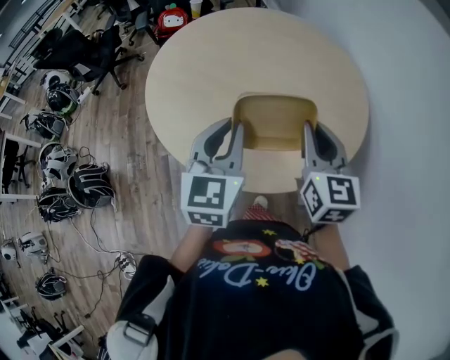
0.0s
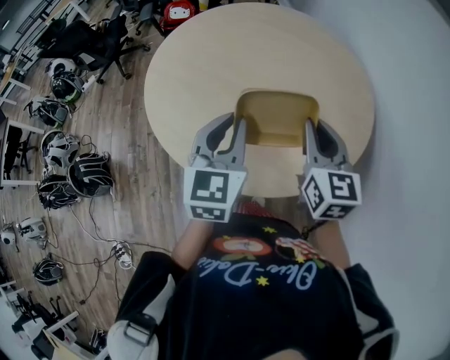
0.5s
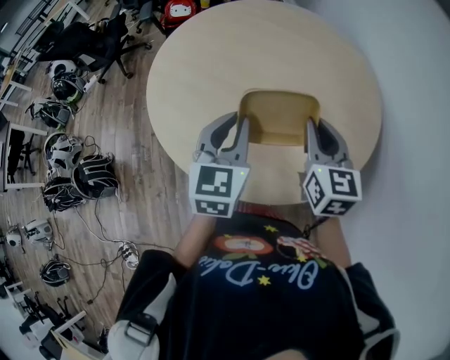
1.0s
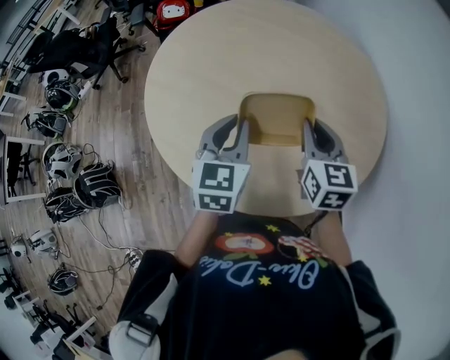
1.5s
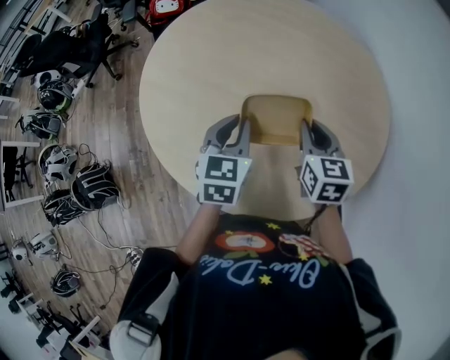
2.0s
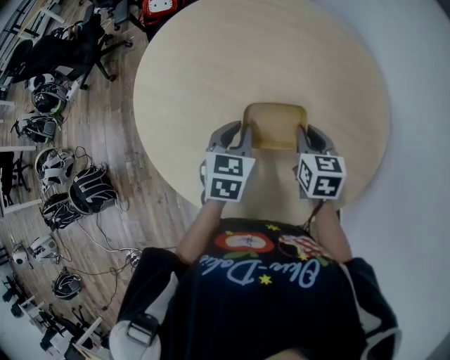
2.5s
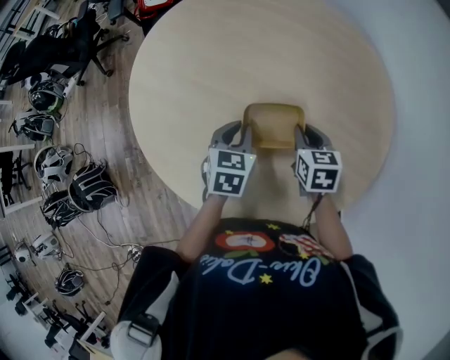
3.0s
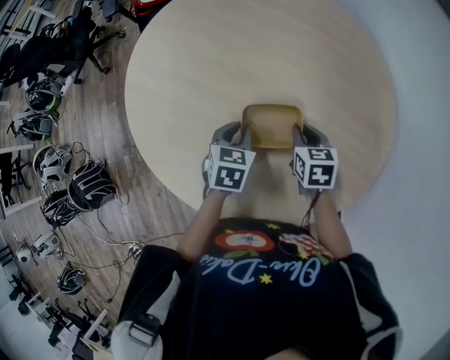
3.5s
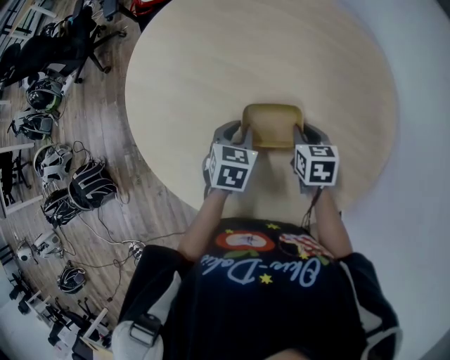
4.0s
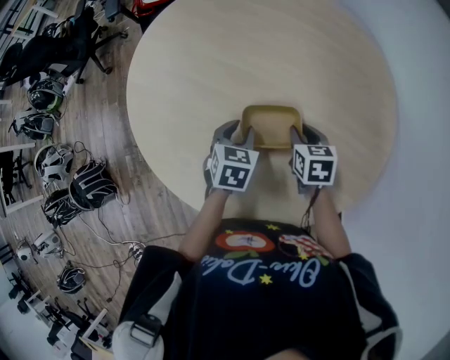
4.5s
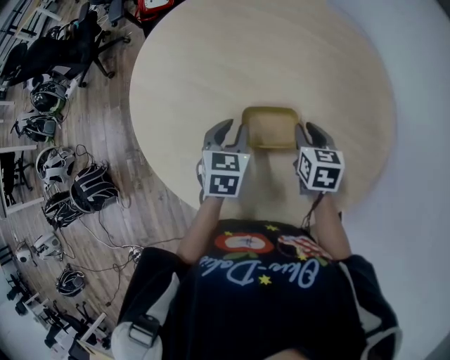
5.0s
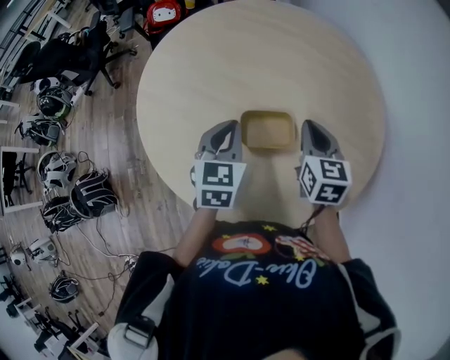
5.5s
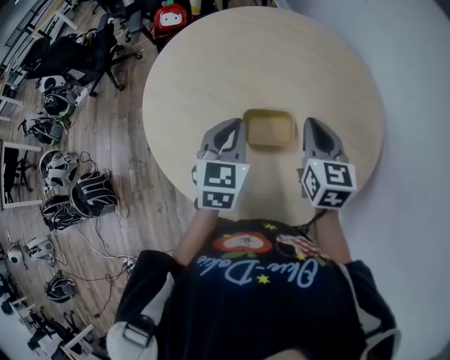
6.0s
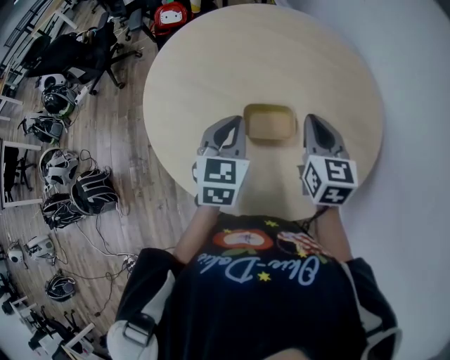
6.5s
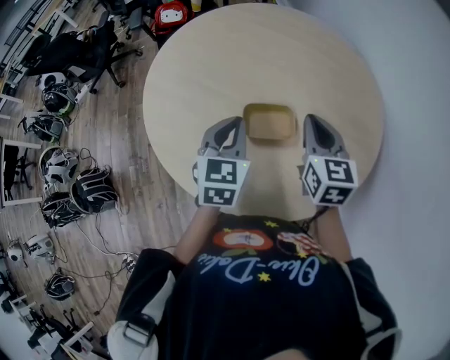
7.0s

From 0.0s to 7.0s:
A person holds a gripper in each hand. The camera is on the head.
From 0.0s to 2.0s: The grippers both shift forward and downward by about 20 cm.
From 2.0s to 3.5s: The grippers both shift downward by roughly 15 cm.
From 3.5s to 5.0s: The left gripper is displaced upward by roughly 5 cm.
From 5.0s to 7.0s: The right gripper moves upward, roughly 15 cm, changes its angle by roughly 20 degrees, and closes. The left gripper moves upward and backward, roughly 15 cm, and closes.

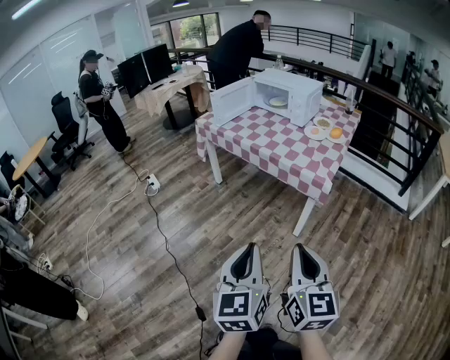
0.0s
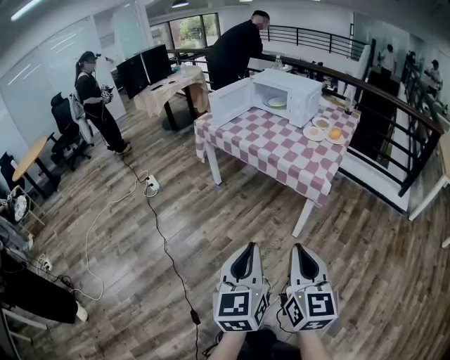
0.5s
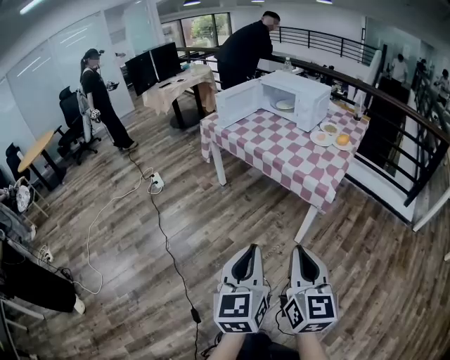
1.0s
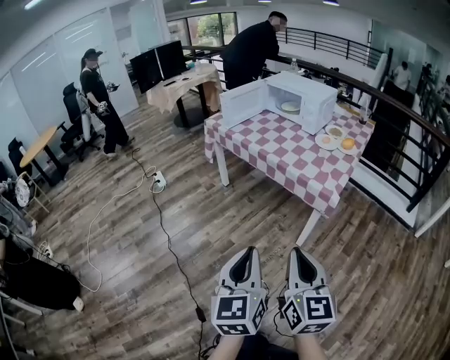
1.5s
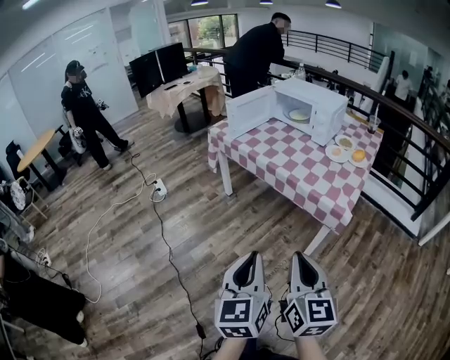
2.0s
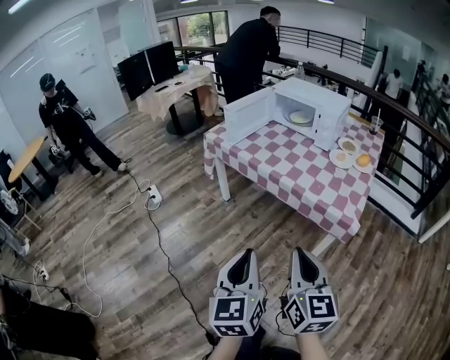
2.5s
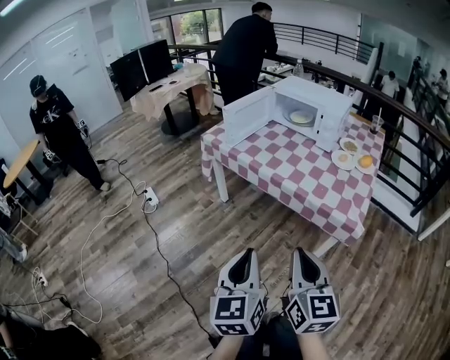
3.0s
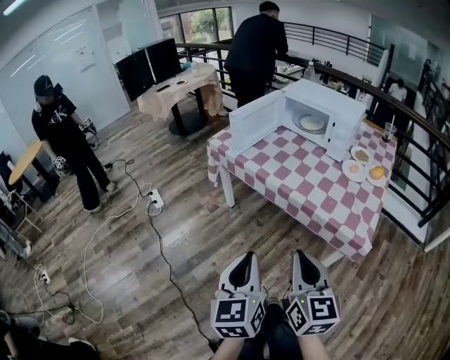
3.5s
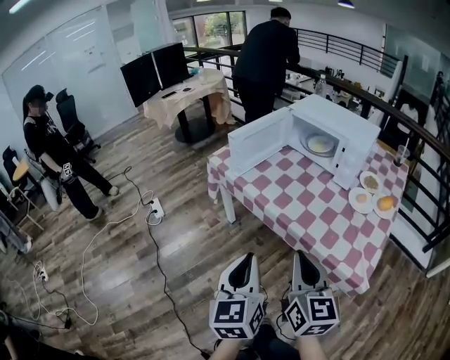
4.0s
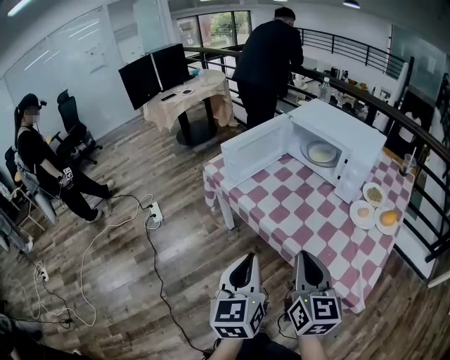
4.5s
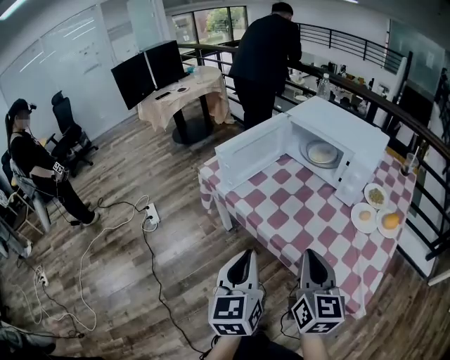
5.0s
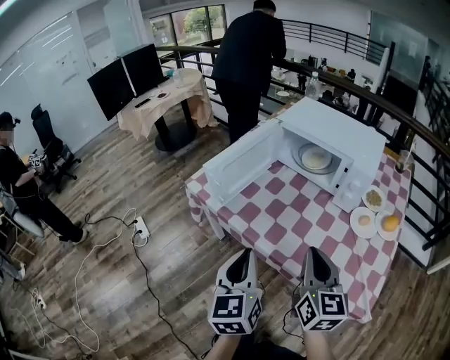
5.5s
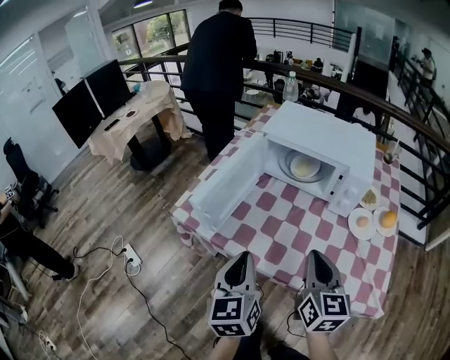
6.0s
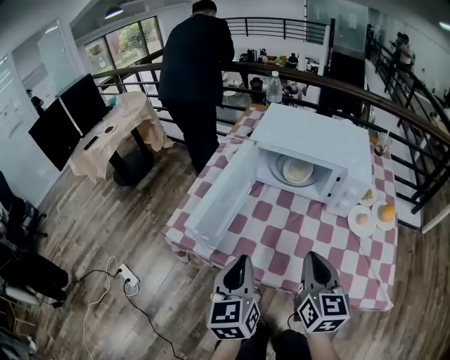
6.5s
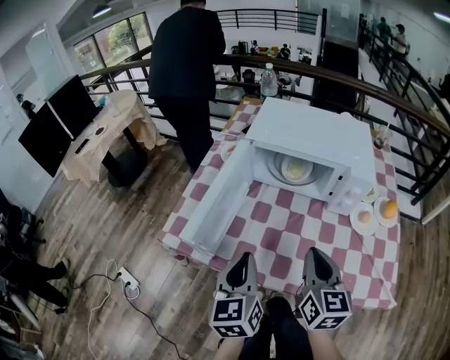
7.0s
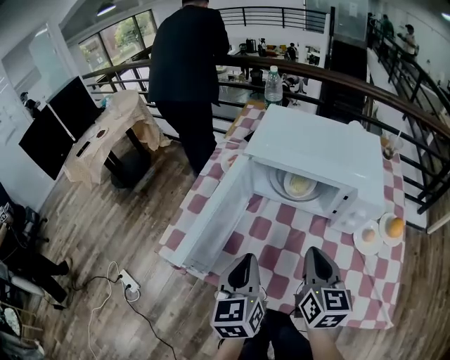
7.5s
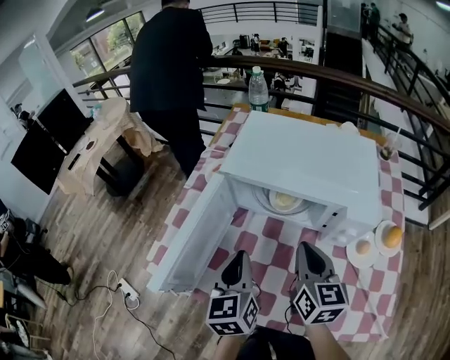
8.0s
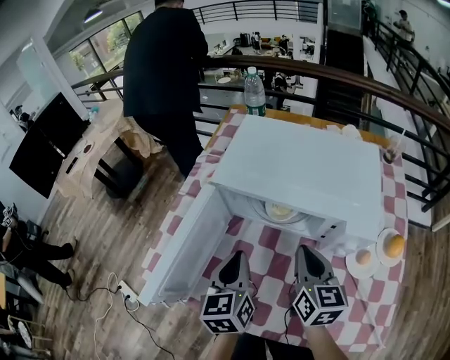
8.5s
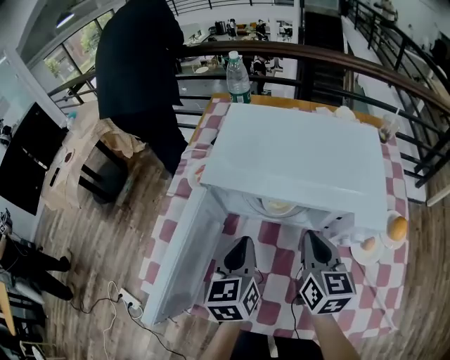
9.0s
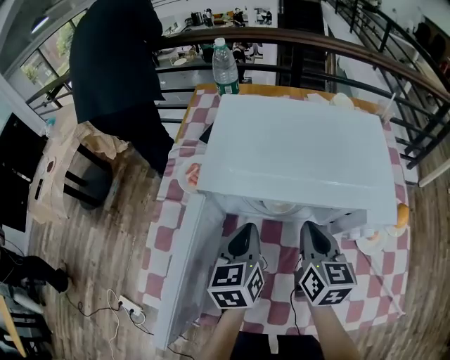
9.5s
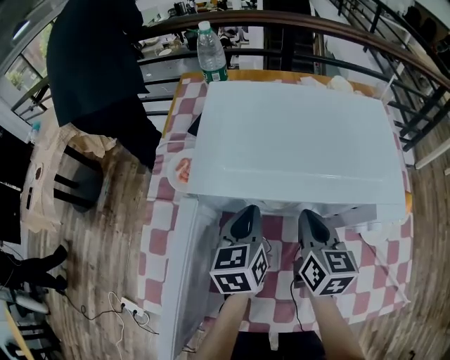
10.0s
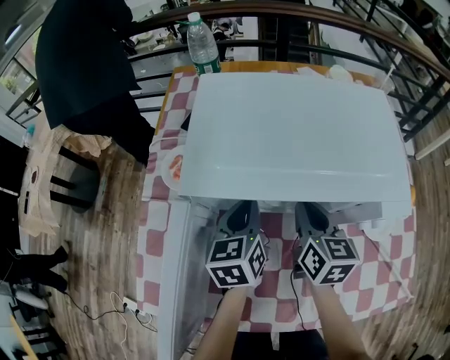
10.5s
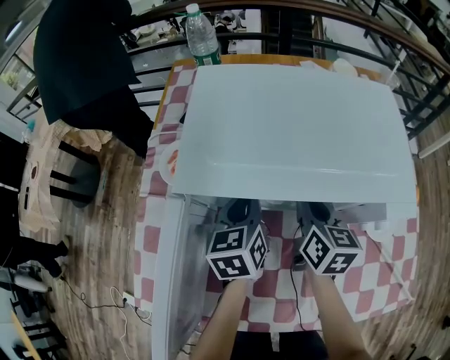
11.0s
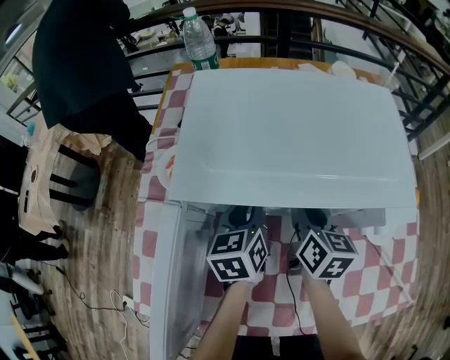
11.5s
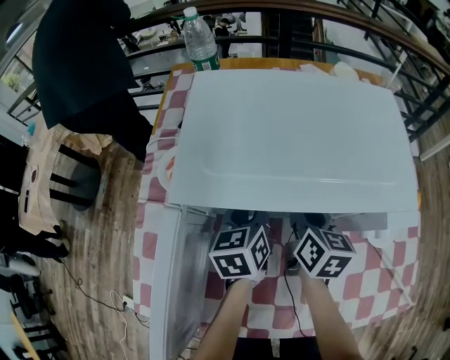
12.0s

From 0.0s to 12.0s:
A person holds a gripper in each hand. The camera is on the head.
From 0.0s to 2.0s: Both grippers travel together forward, roughly 10 cm.
From 2.0s to 4.0s: Both grippers move forward, roughly 30 cm.
From 4.0s to 6.0s: Both grippers travel together forward, some 25 cm. The right gripper turns by roughly 20 degrees.
From 6.0s to 8.0s: Both grippers travel together forward, roughly 20 cm.
From 8.0s to 10.0s: Both grippers travel together forward and downward, about 15 cm. The left gripper rotates approximately 20 degrees.
From 10.0s to 12.0s: The right gripper ends up about 5 cm from where it was, and opens; the left gripper shifts by approximately 5 cm, and opens up.

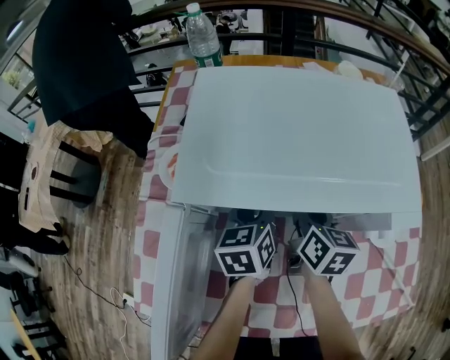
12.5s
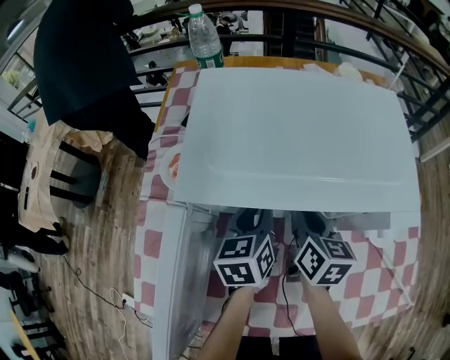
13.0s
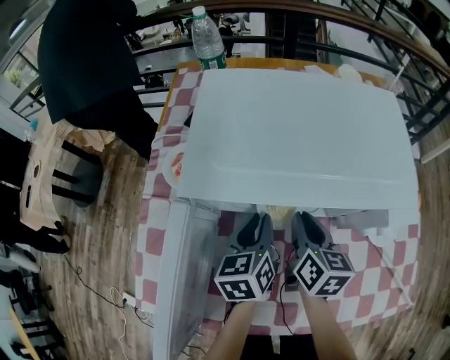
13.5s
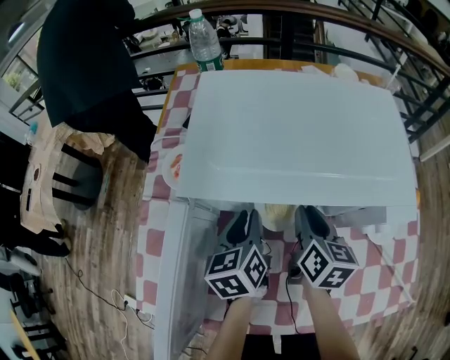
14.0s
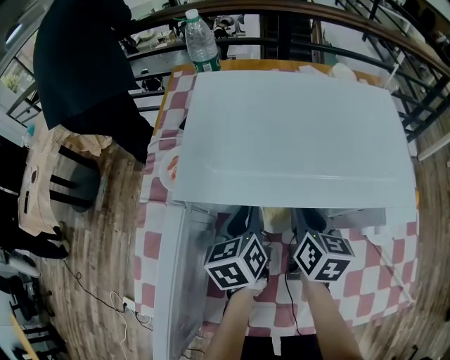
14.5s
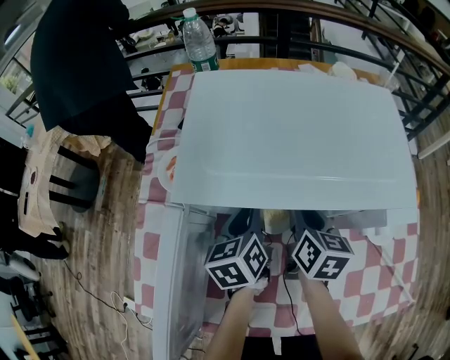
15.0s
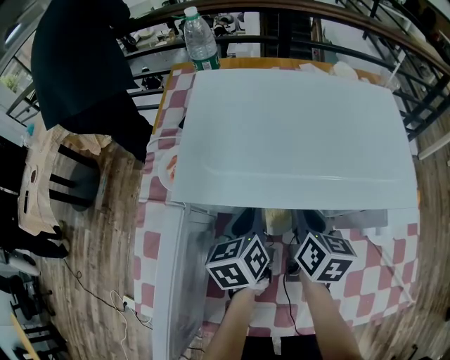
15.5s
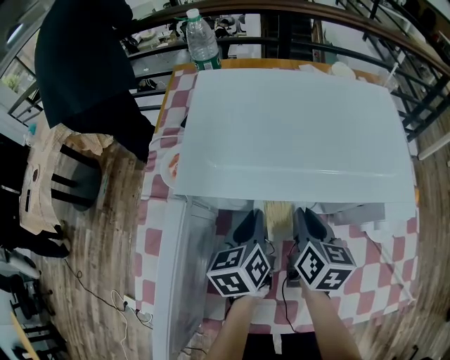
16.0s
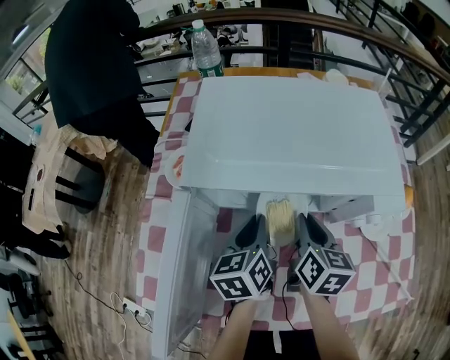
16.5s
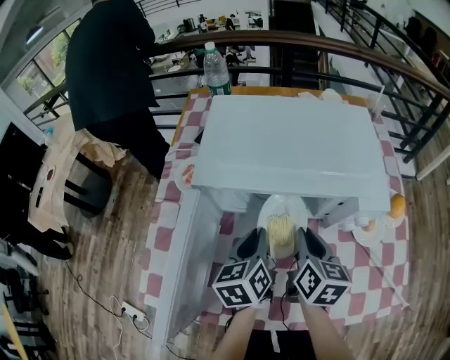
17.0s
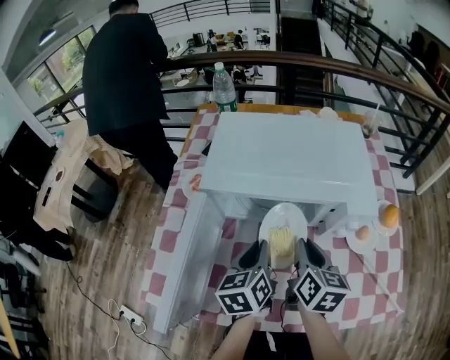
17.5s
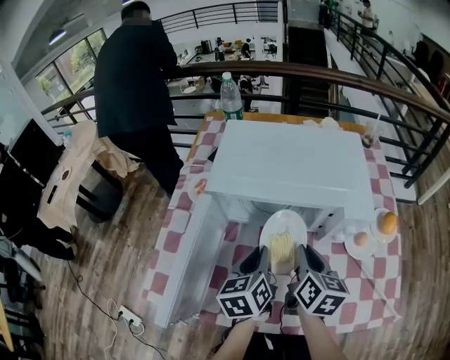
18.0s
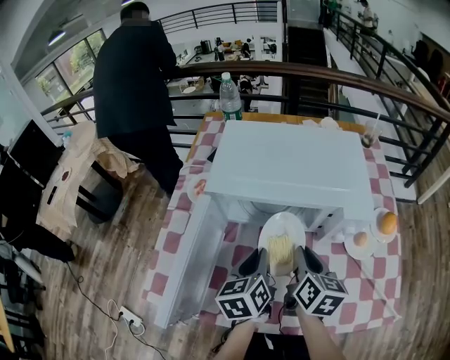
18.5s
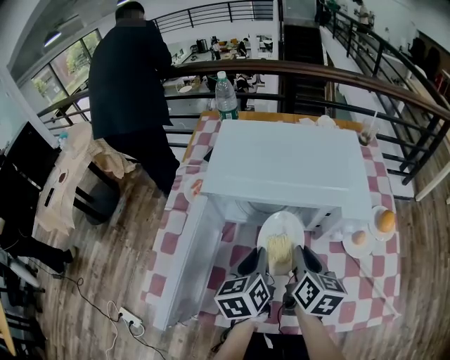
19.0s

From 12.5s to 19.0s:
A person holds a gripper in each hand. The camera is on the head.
From 14.5s to 17.0s: The right gripper goes some 10 cm backward and upward, while the left gripper travels backward by roughly 10 cm.
From 17.0s to 19.0s: The left gripper changes place by roughly 5 cm.

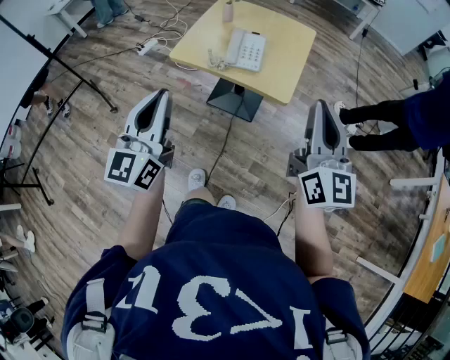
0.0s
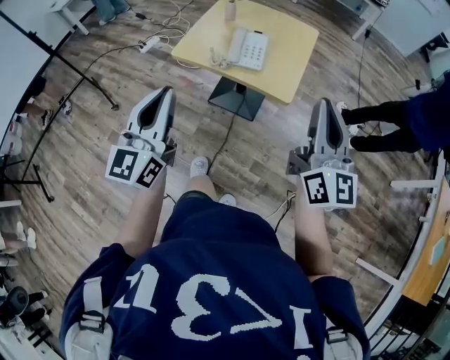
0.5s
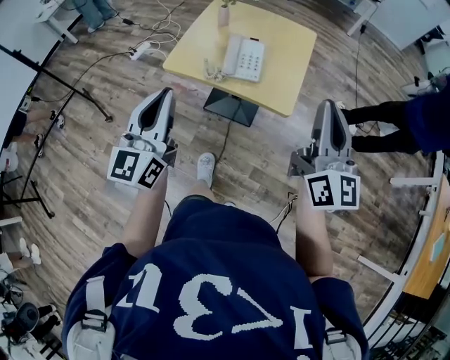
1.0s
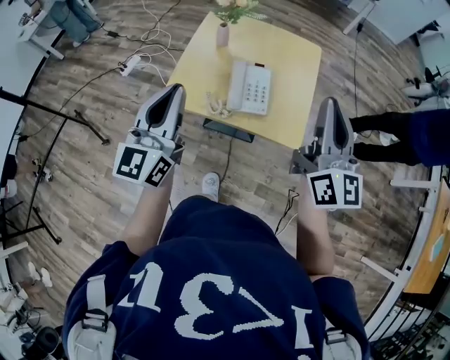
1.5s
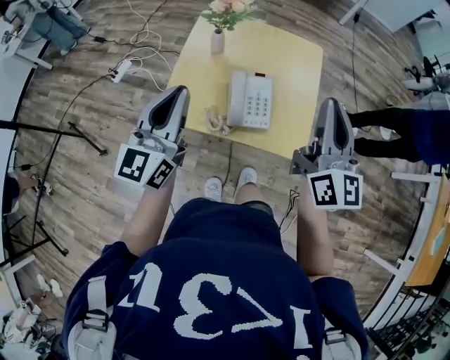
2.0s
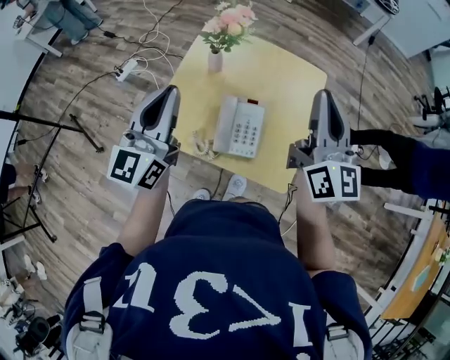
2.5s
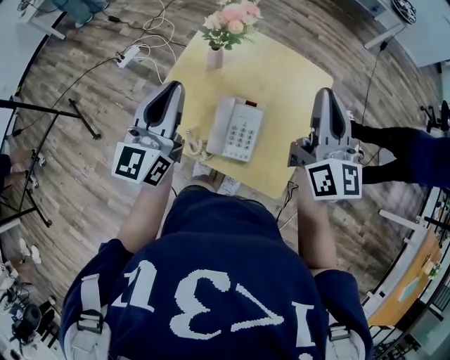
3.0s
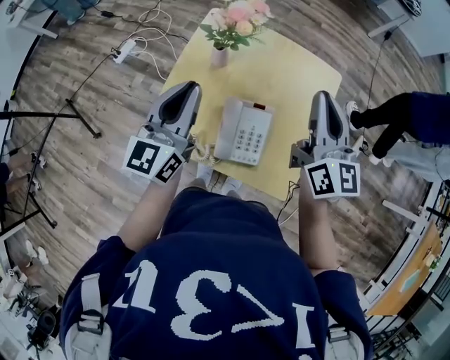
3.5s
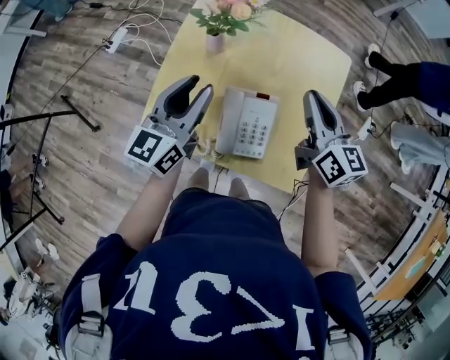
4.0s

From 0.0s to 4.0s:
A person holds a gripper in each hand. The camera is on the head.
From 0.0s to 2.0s: The two grippers go about 35 cm forward.
From 2.0s to 4.0s: The two grippers go some 25 cm forward and downward. The right gripper rotates about 30 degrees.
